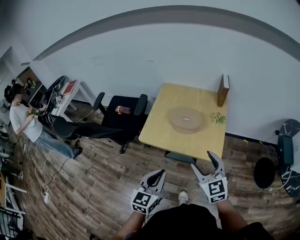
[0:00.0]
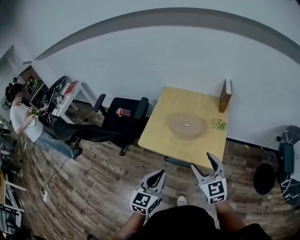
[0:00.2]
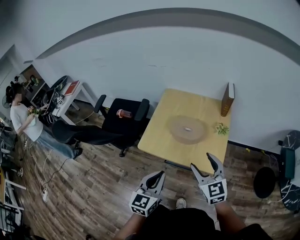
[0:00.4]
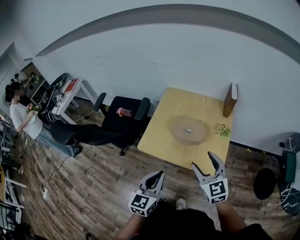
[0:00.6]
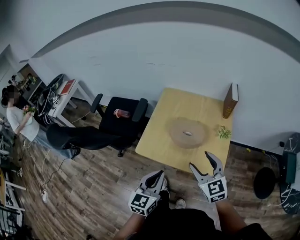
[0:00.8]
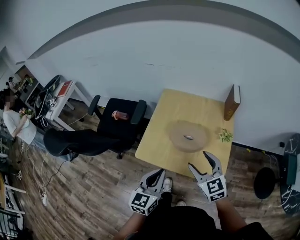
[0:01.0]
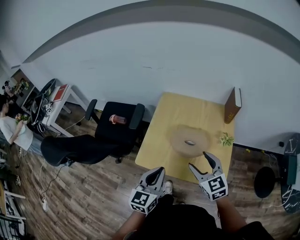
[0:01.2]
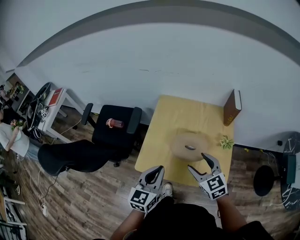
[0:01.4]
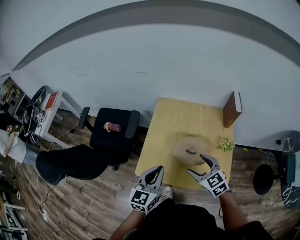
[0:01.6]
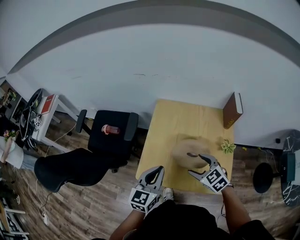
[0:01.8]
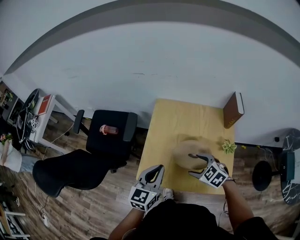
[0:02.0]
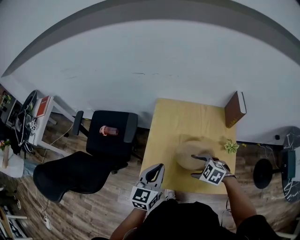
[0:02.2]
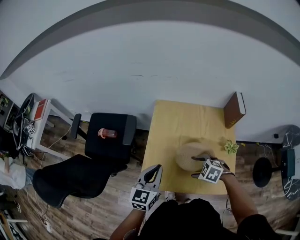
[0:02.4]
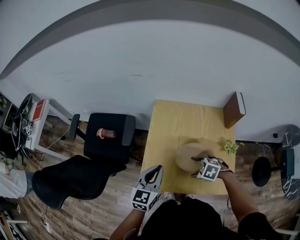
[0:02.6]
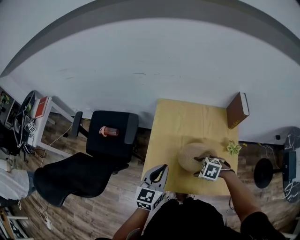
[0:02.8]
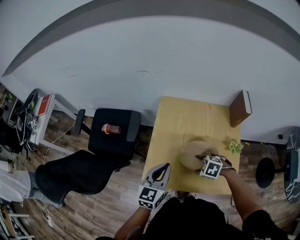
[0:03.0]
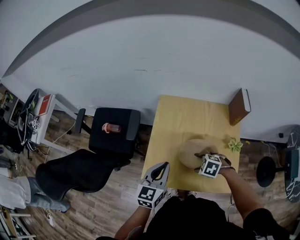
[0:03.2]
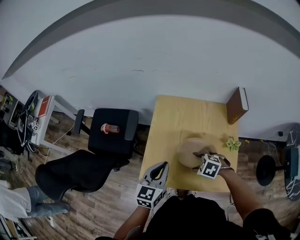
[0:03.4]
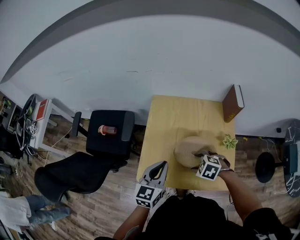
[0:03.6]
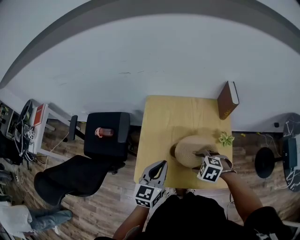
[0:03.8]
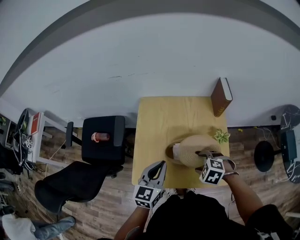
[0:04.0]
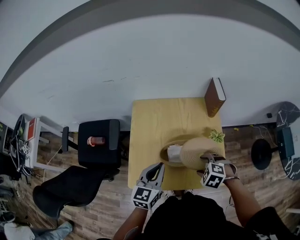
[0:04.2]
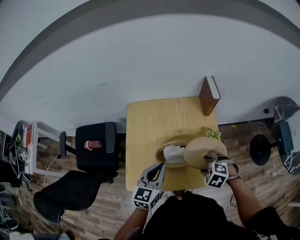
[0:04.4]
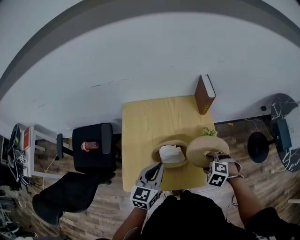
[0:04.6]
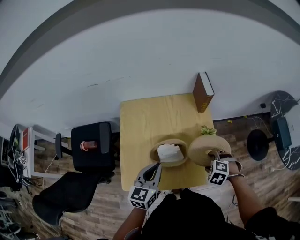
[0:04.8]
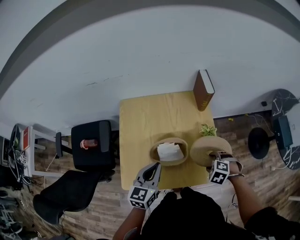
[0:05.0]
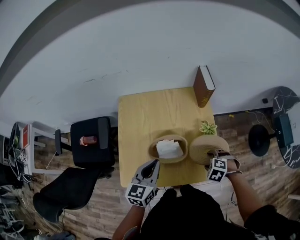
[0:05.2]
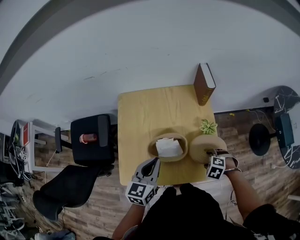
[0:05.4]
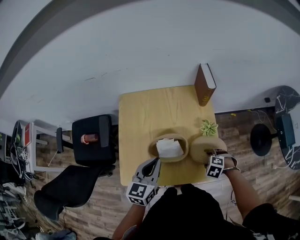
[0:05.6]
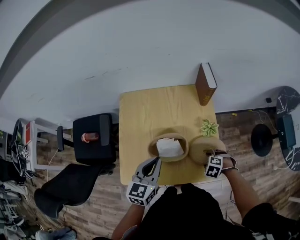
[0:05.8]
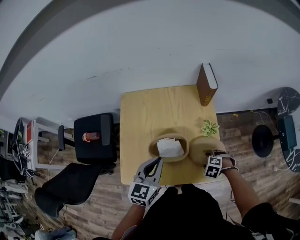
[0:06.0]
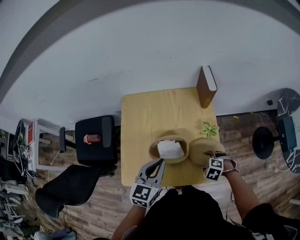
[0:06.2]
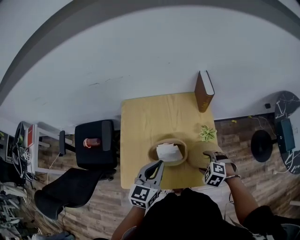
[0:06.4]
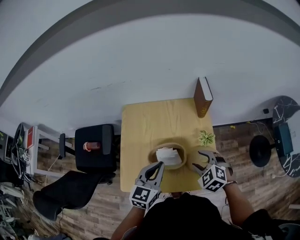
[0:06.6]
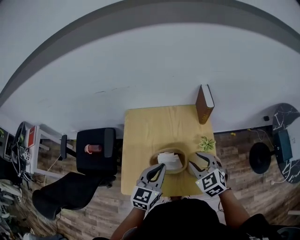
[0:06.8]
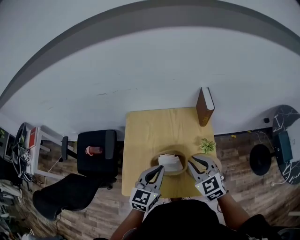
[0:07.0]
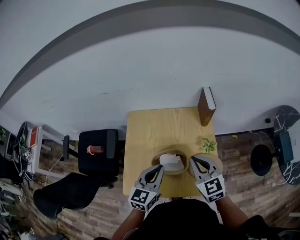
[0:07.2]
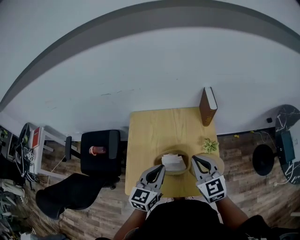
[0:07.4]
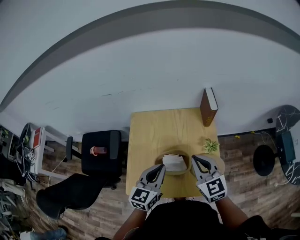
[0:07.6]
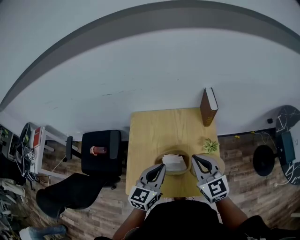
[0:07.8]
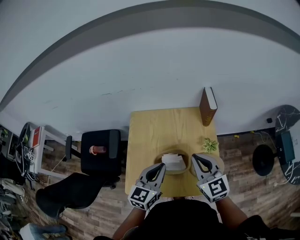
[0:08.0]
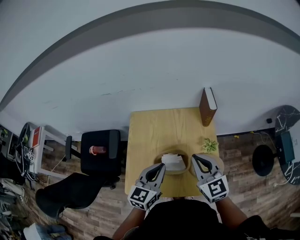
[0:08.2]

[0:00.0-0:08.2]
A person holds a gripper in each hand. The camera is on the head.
0:00.0 to 0:01.6: The two grippers go about 25 cm forward. The right gripper rotates about 20 degrees.
0:01.6 to 0:03.2: The right gripper heads downward, covering some 15 cm, and points its fingers approximately 40 degrees further downward; the left gripper moves forward, approximately 5 cm.
0:03.2 to 0:05.0: The left gripper changes place by approximately 10 cm, while the right gripper ends up some 20 cm from where it was, and rotates approximately 20 degrees.
0:05.0 to 0:06.6: The left gripper shifts by about 5 cm, while the right gripper moves upward, approximately 10 cm, and rotates some 30 degrees.
0:06.6 to 0:08.2: The right gripper shifts about 15 cm upward, angles its fingers upward, by about 40 degrees, and closes its fingers.

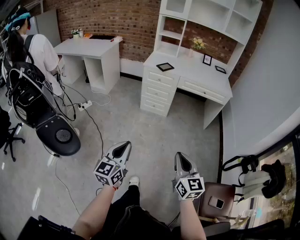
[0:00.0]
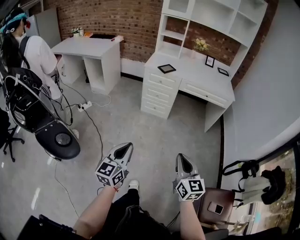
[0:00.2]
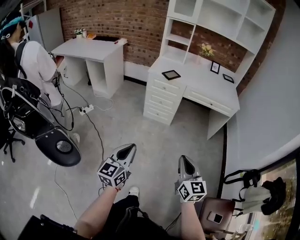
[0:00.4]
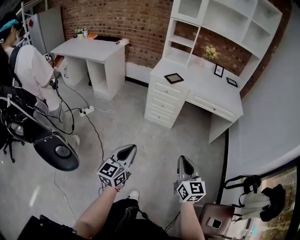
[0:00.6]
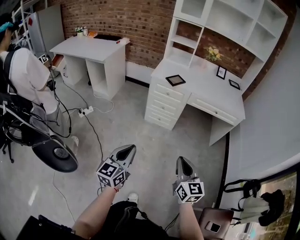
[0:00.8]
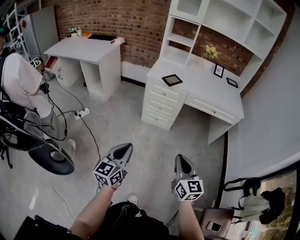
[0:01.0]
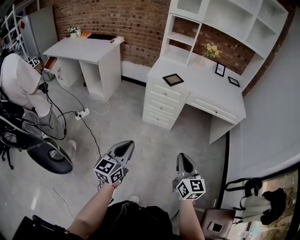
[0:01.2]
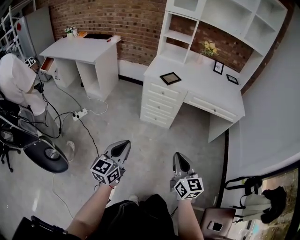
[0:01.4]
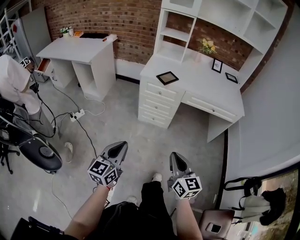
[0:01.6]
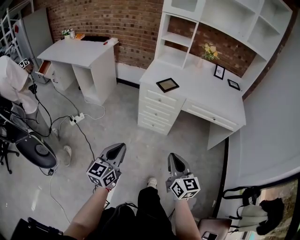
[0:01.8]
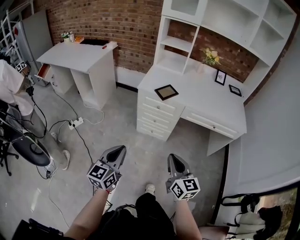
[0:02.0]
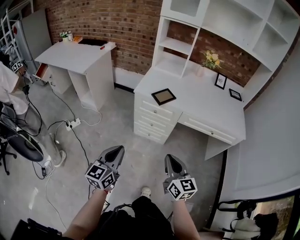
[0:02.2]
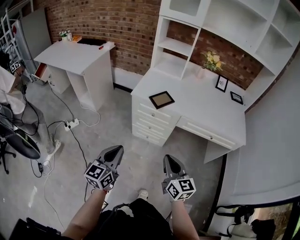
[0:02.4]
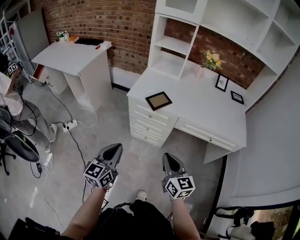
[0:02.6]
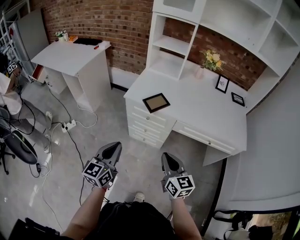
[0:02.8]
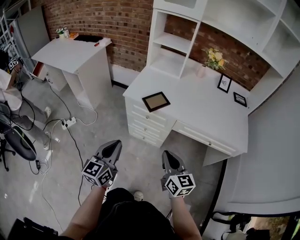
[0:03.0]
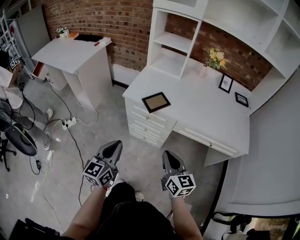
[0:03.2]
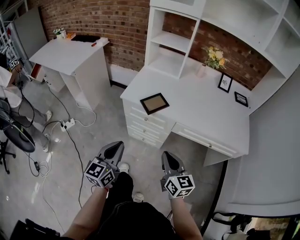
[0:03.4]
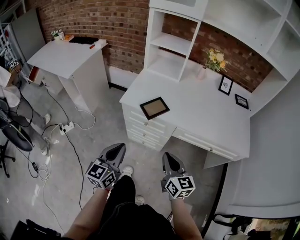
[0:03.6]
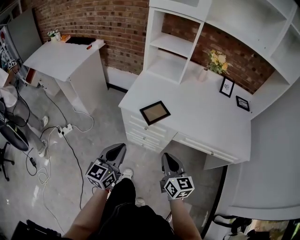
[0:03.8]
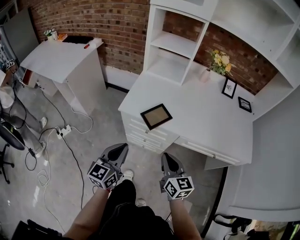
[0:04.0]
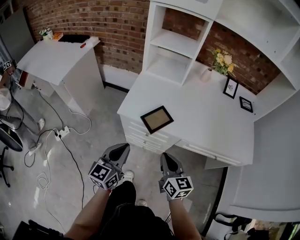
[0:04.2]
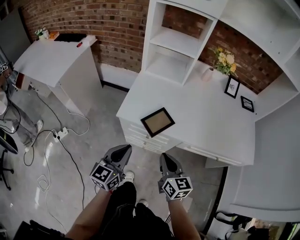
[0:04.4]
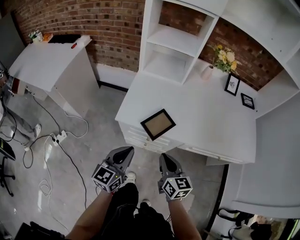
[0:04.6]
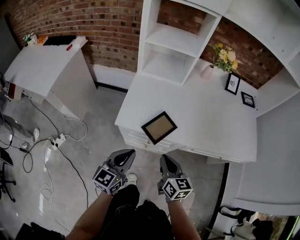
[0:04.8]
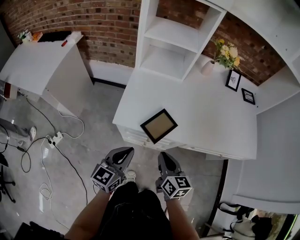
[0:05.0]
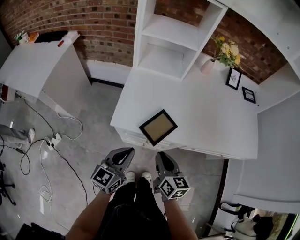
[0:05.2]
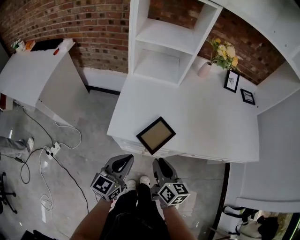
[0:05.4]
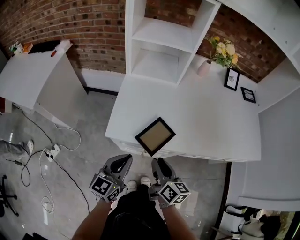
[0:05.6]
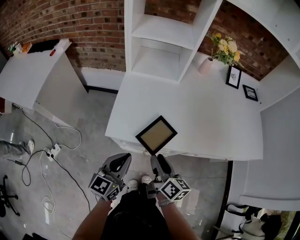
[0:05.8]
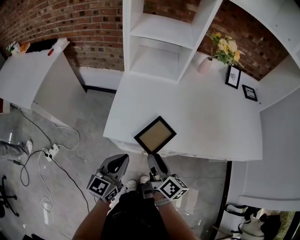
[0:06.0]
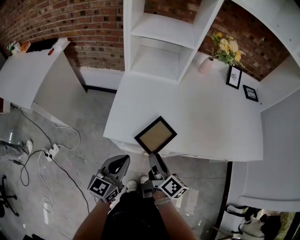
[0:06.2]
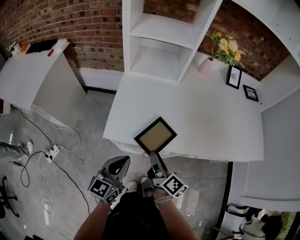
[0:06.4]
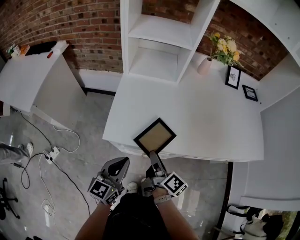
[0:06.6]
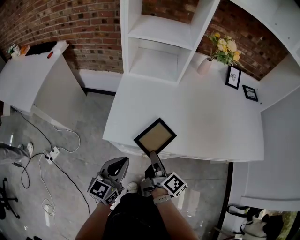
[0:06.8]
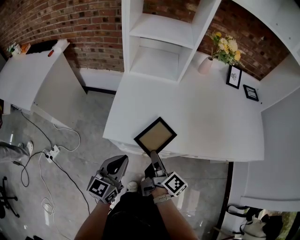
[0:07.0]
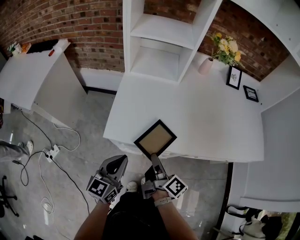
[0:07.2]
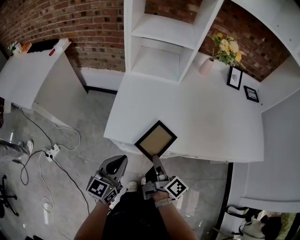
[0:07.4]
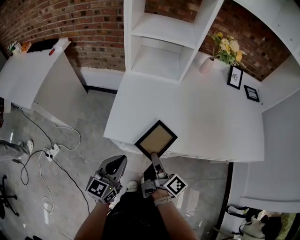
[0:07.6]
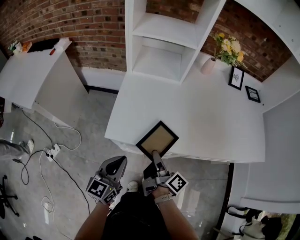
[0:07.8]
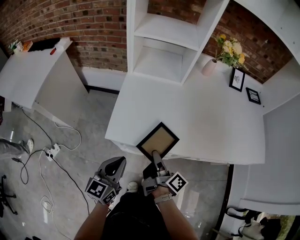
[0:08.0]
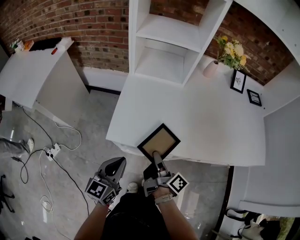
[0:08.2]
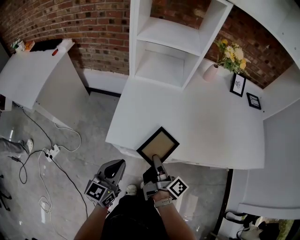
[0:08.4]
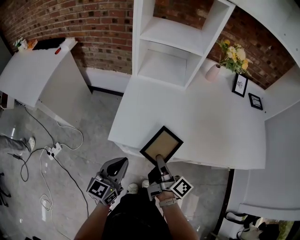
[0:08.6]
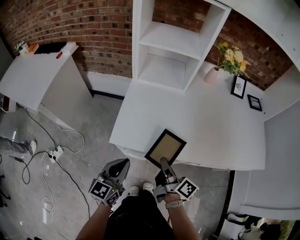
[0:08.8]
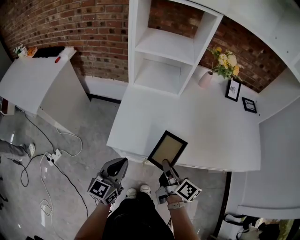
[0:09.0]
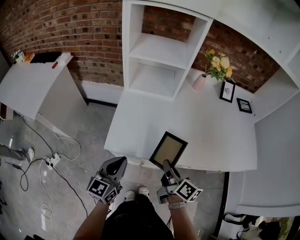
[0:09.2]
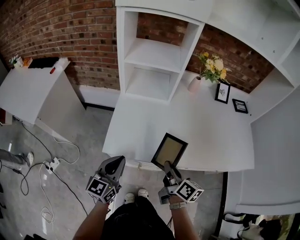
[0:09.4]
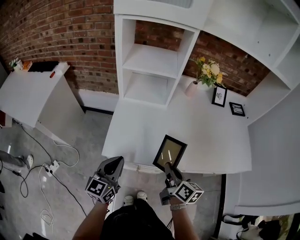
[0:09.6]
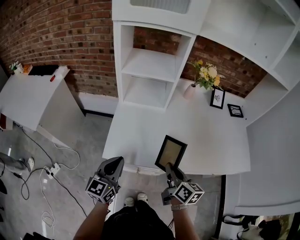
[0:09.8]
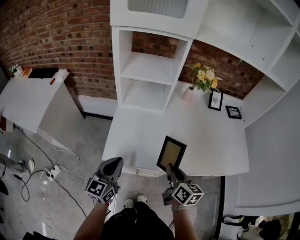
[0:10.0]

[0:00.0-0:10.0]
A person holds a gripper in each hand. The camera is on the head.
0:00.0 to 0:01.4: The grippers both shift forward by some 25 cm.
0:01.4 to 0:02.8: Both grippers move forward, approximately 25 cm.
0:02.8 to 0:04.2: The grippers both shift forward by approximately 15 cm.
0:04.2 to 0:05.8: The grippers both shift forward and downward by about 15 cm. The right gripper rotates approximately 30 degrees, and opens.
0:05.8 to 0:07.2: The right gripper swivels roughly 30 degrees.
0:07.2 to 0:08.6: The grippers stay close to where they were, moving slightly.
0:08.6 to 0:10.0: The left gripper goes about 10 cm upward and forward. Meanwhile the right gripper moves upward and to the right, roughly 15 cm, and rotates around the line of its fingers by about 50 degrees, counterclockwise from behind.

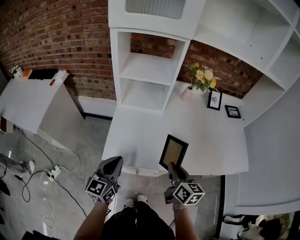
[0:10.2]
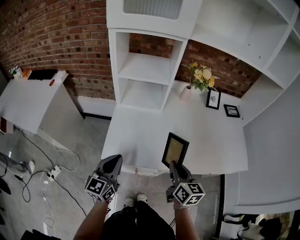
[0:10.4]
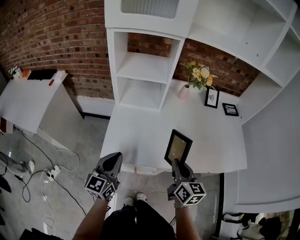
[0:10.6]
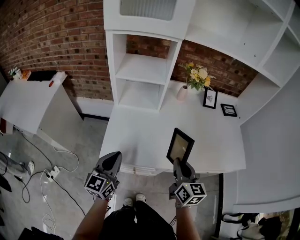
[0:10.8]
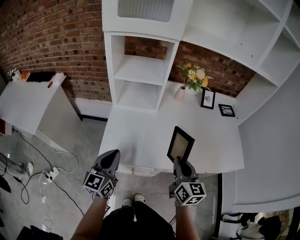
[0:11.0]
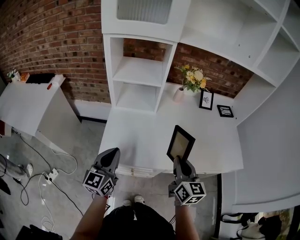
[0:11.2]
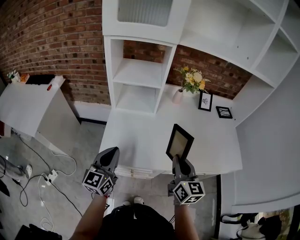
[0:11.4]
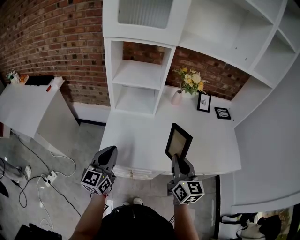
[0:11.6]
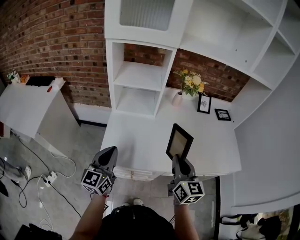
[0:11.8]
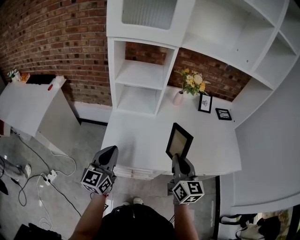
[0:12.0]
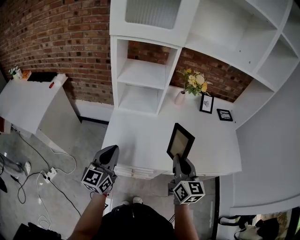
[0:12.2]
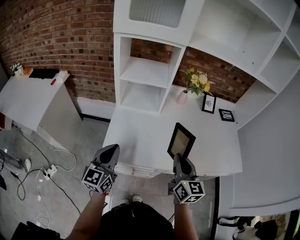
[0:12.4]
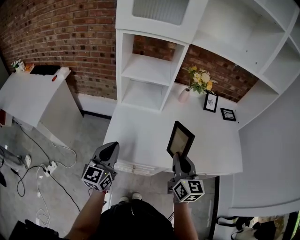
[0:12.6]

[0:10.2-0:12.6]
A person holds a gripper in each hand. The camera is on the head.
0:10.2 to 0:11.4: The left gripper changes place by roughly 5 cm. The right gripper travels upward by about 10 cm, and turns by about 20 degrees.
0:11.4 to 0:12.6: There are only small adjustments of the grippers.

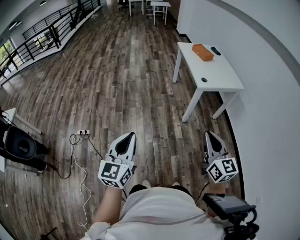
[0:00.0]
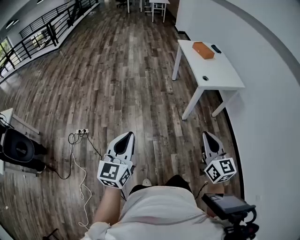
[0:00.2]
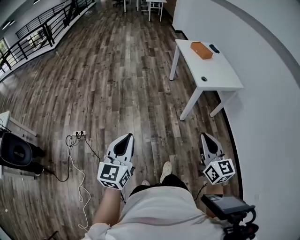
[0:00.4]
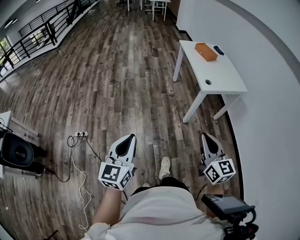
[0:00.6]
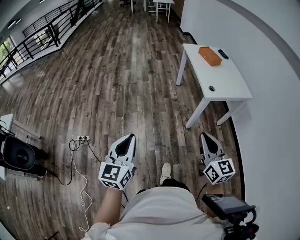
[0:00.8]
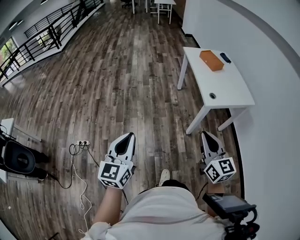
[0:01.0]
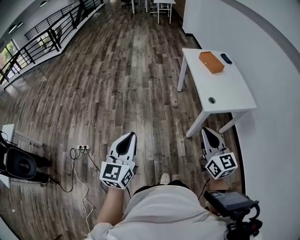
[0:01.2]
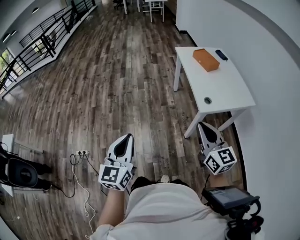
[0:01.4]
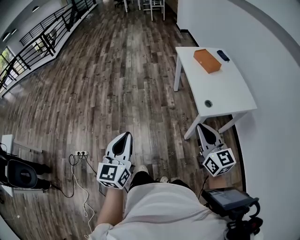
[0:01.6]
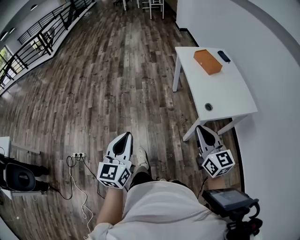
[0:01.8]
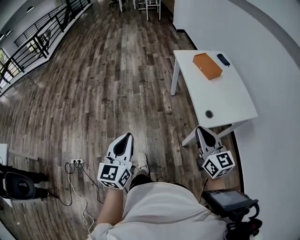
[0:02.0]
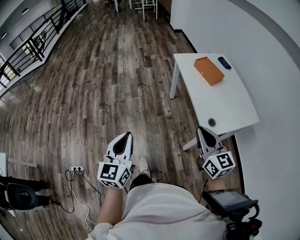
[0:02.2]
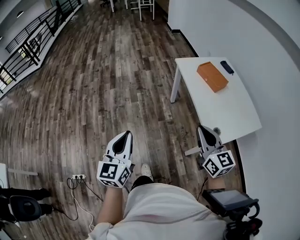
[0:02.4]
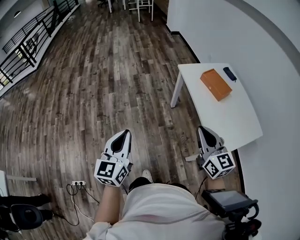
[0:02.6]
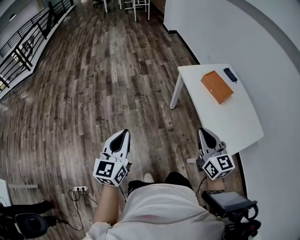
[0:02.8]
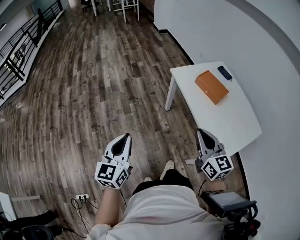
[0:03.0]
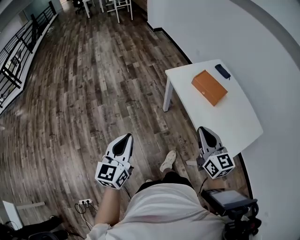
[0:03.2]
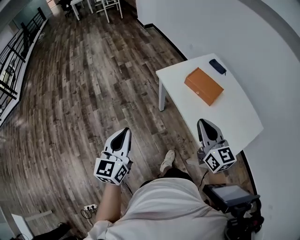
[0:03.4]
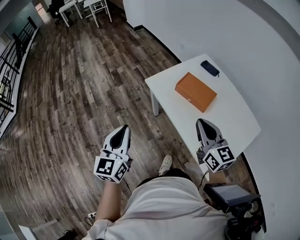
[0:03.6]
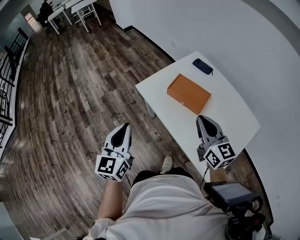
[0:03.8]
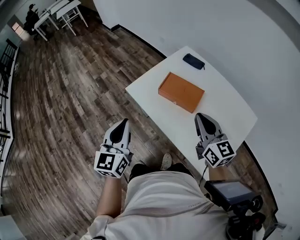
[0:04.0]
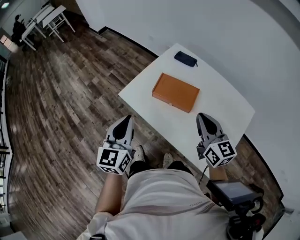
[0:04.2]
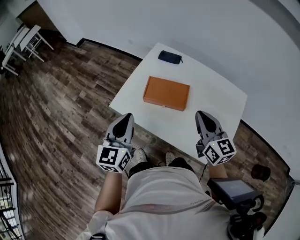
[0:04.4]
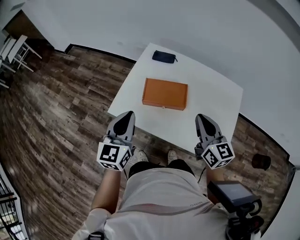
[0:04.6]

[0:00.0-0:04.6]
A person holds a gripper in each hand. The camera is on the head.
0:00.0 to 0:01.6: Both grippers move forward, roughly 40 cm.
0:01.6 to 0:03.0: The pair of grippers is taken forward, about 40 cm.
0:03.0 to 0:04.6: The left gripper shifts by approximately 60 cm, and swivels about 50 degrees. Meanwhile the right gripper ends up about 35 cm from where it was, and changes its angle by some 50 degrees.
